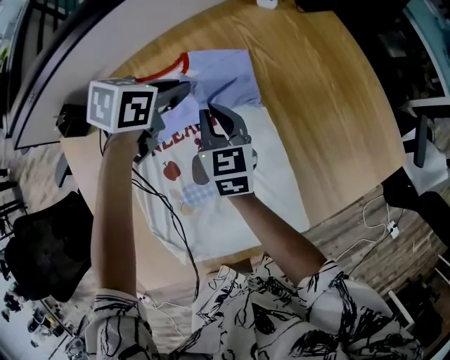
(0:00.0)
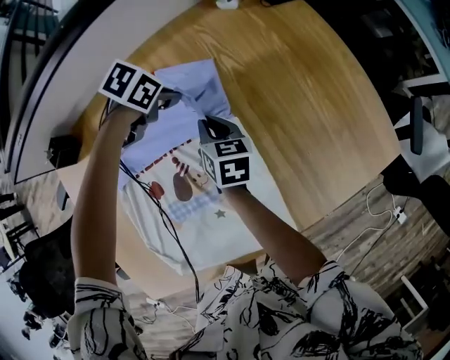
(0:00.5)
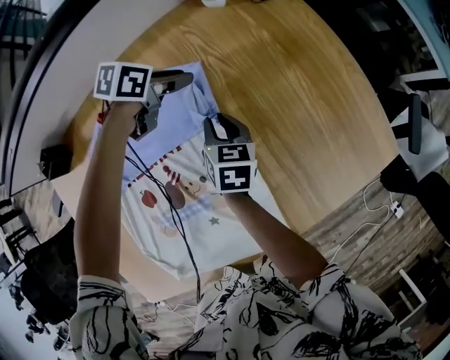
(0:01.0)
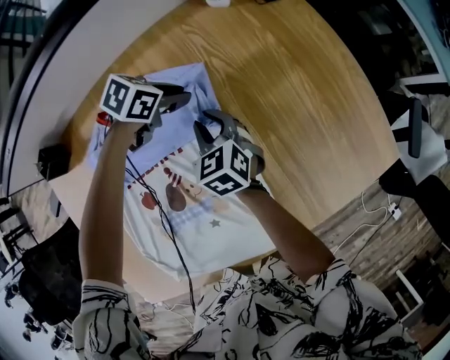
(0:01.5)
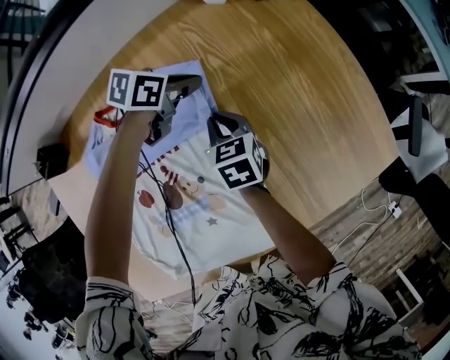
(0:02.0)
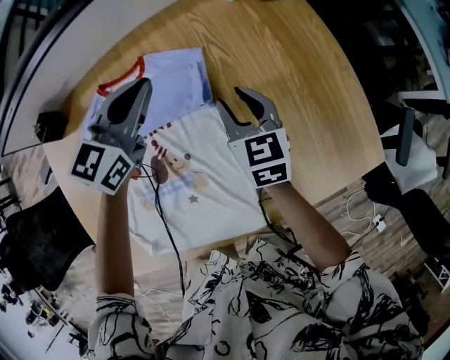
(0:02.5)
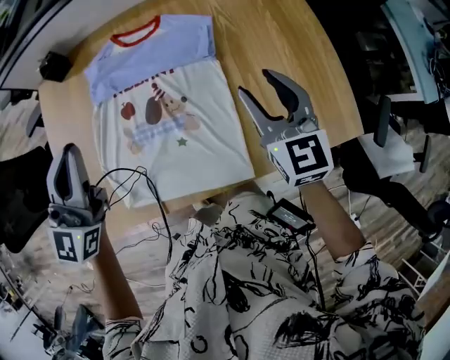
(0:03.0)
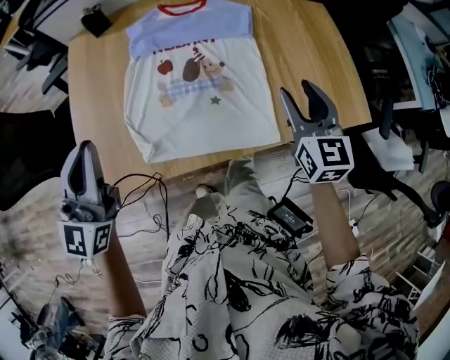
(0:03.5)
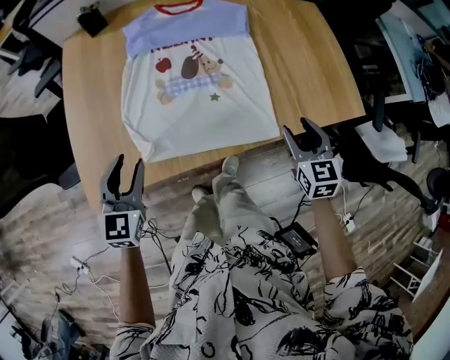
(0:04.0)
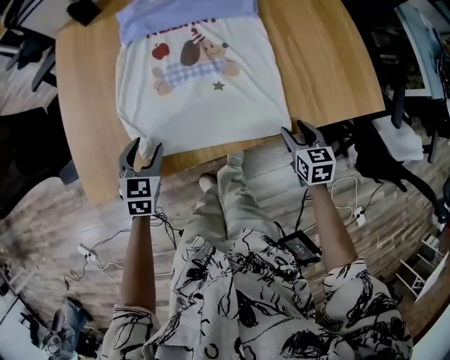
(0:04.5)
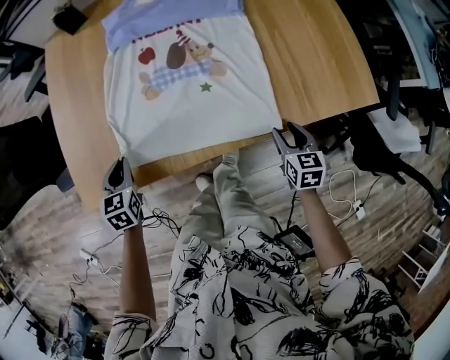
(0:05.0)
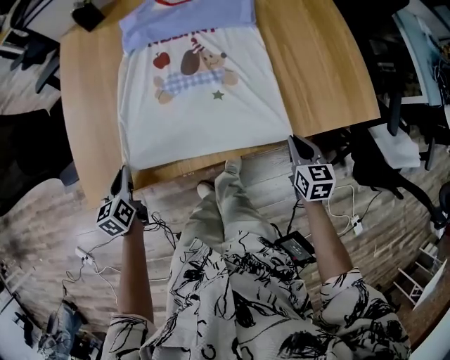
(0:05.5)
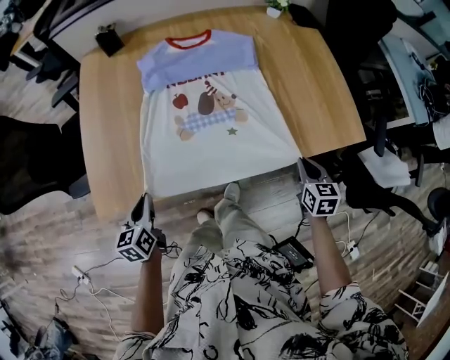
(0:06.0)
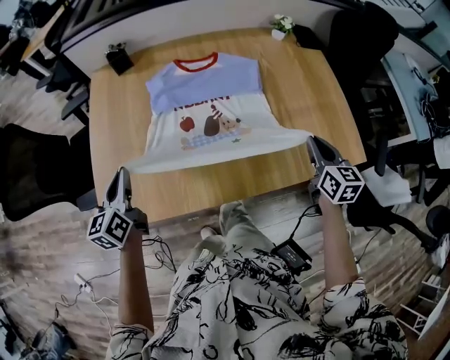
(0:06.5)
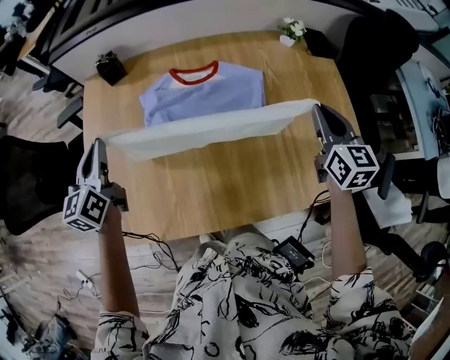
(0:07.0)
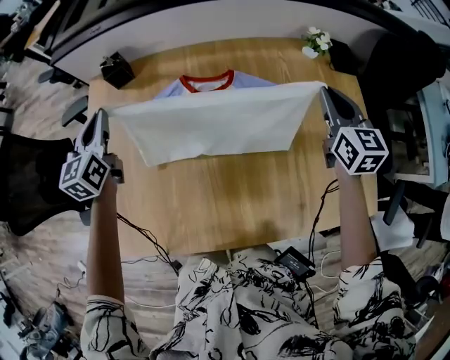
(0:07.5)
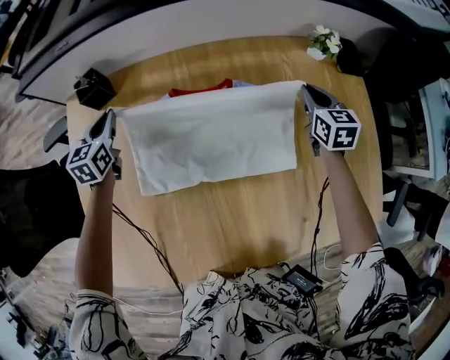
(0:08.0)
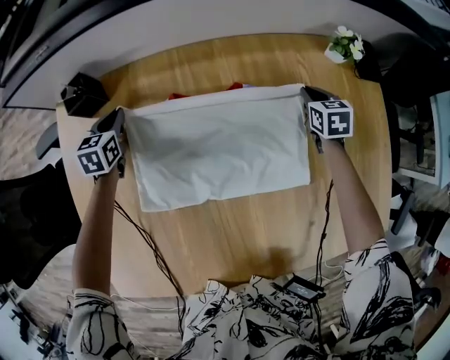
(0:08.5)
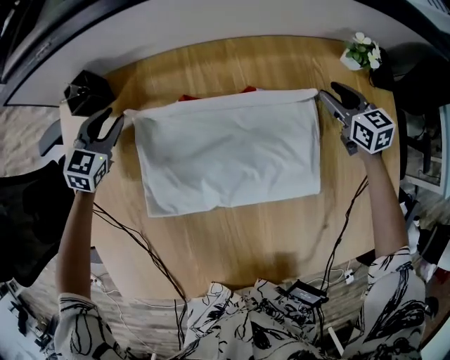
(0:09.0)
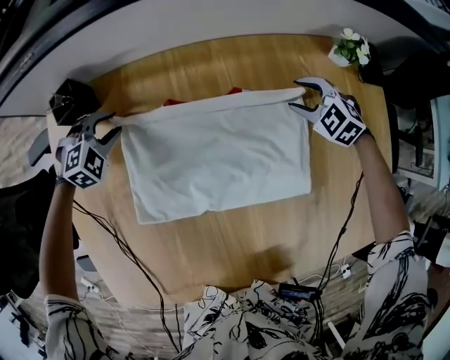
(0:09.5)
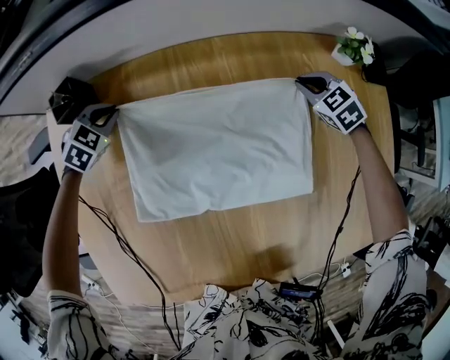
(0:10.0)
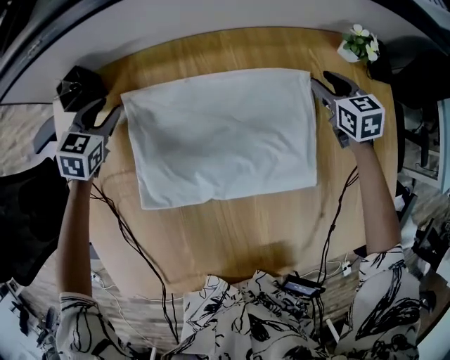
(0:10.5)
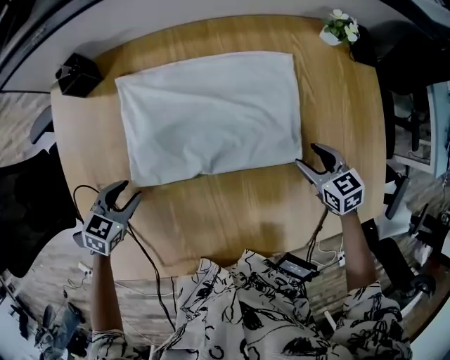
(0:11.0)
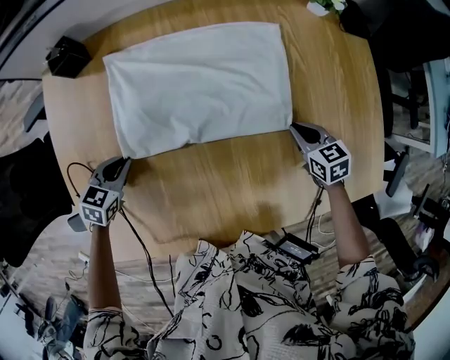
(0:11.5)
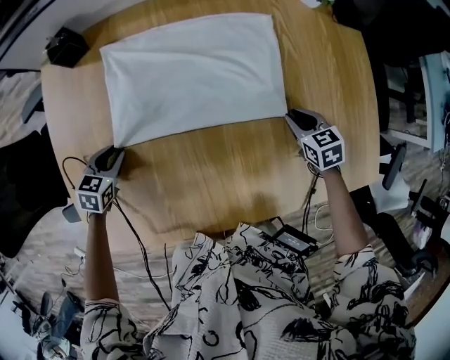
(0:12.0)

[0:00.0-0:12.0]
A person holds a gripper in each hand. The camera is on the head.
0:00.0 to 0:02.0: The right gripper travels downward, to the right and forward by some 15 cm, and swivels roughly 20 degrees. The left gripper shifts roughly 20 cm forward, downward and to the right.
0:02.0 to 0:04.0: The right gripper moves some 40 cm, turns by approximately 20 degrees, and opens its fingers. The left gripper ends up approximately 70 cm from where it was, rotates about 60 degrees, and opens its fingers.
0:04.0 to 0:06.0: The left gripper goes roughly 10 cm downward and backward, and changes its angle by about 40 degrees, while the right gripper heads to the right and downward, covering approximately 10 cm, and closes.
0:06.0 to 0:08.0: The pair of grippers is taken forward, about 60 cm.
0:08.0 to 0:10.0: The right gripper goes up and down, about 10 cm each way, reversing 2 times, swivels roughly 40 degrees, and opens, then closes again, while the left gripper moves downward and forward, about 15 cm, and points its fingers roughly 30 degrees further downward.
0:10.0 to 0:12.0: The two grippers go roughly 30 cm backward. The right gripper turns by about 30 degrees, and opens, then closes once more. Meanwhile the left gripper changes its angle by approximately 30 degrees.

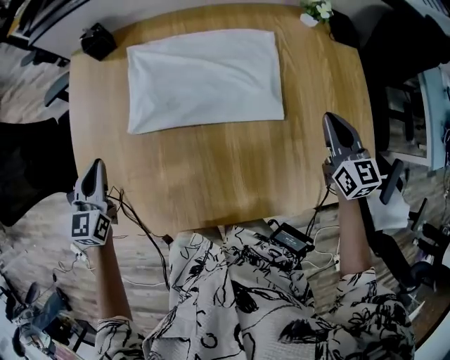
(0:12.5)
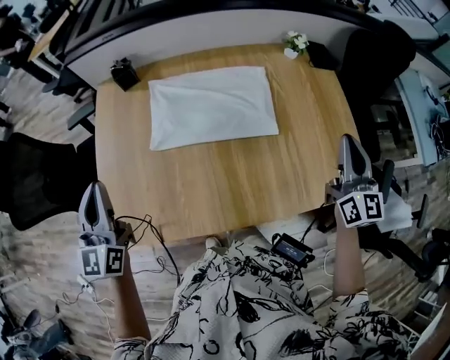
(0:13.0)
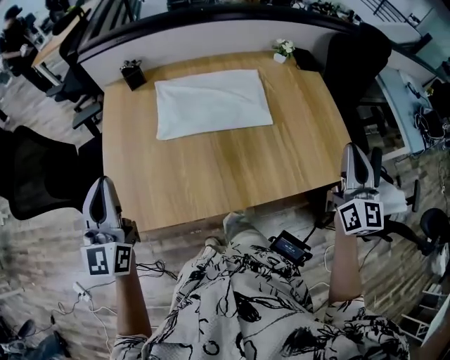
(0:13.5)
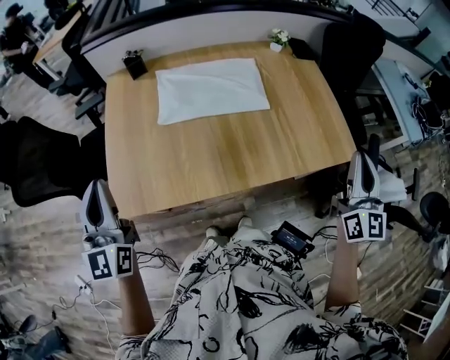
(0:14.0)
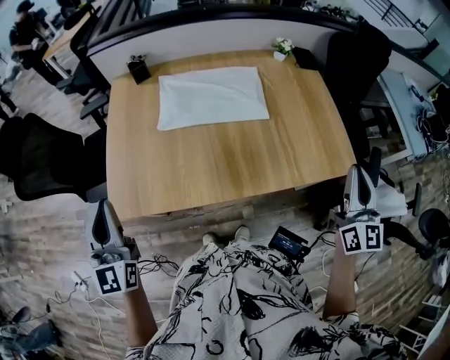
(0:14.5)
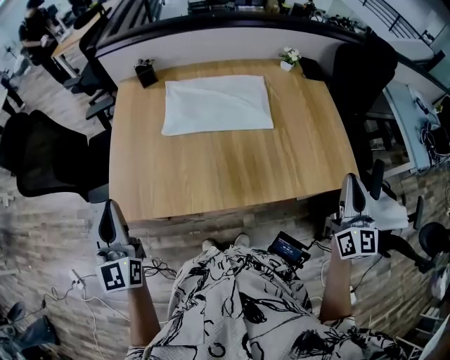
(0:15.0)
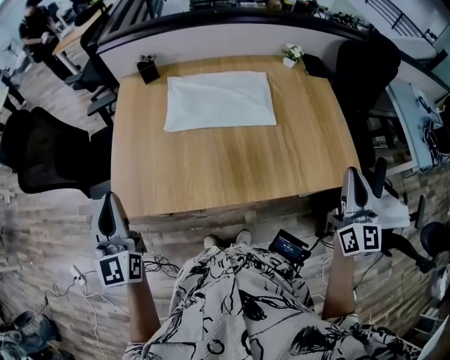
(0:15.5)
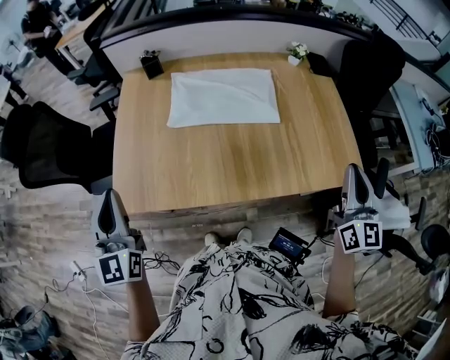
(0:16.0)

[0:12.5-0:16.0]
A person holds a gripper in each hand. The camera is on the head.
0:12.5 to 0:14.5: Both grippers travel together backward and upward, approximately 40 cm. The left gripper rotates some 30 degrees. The right gripper turns by some 30 degrees.
0:14.5 to 0:16.0: The grippers stay close to where they were, moving slightly.

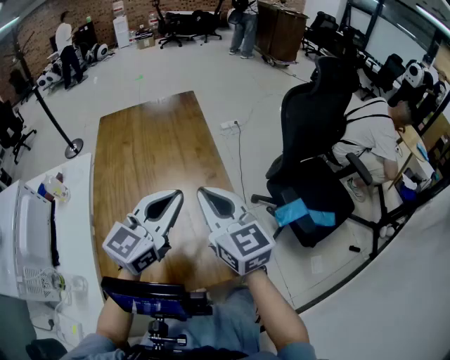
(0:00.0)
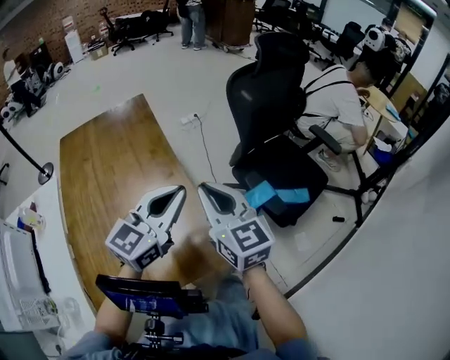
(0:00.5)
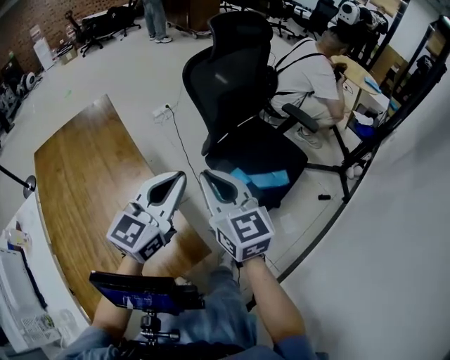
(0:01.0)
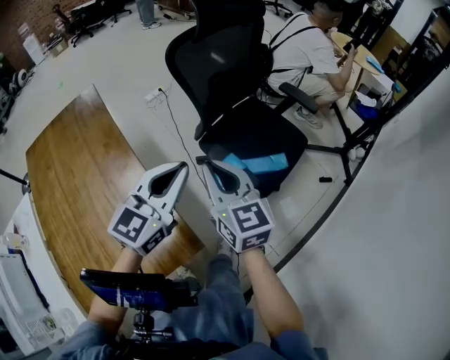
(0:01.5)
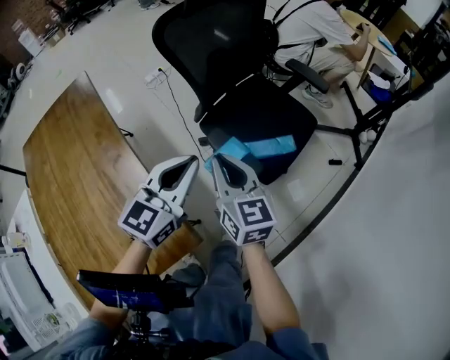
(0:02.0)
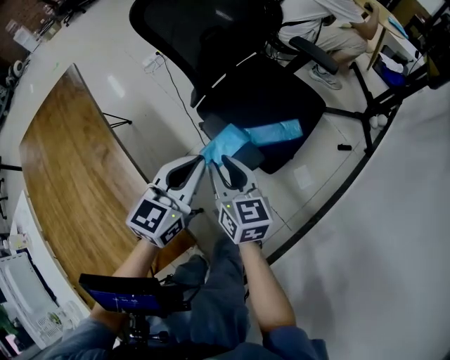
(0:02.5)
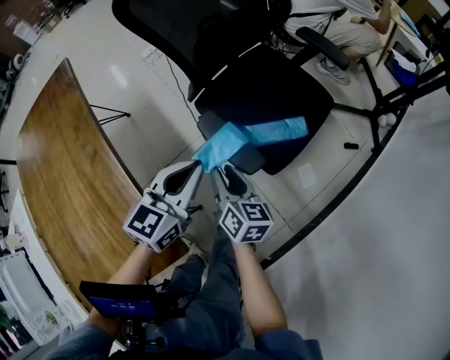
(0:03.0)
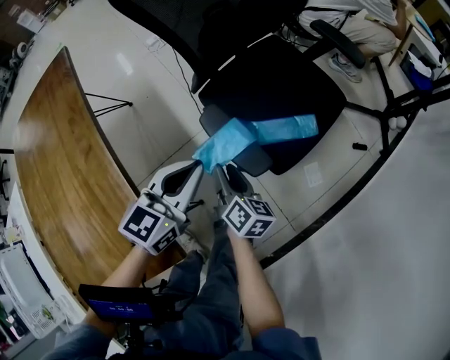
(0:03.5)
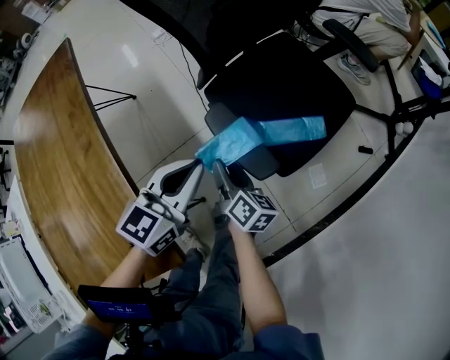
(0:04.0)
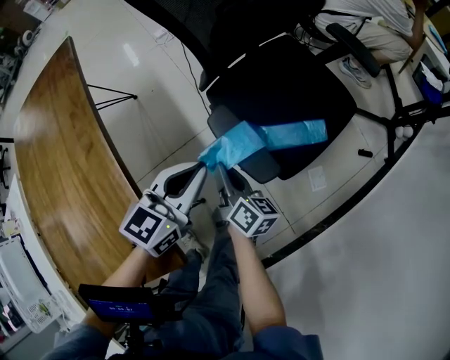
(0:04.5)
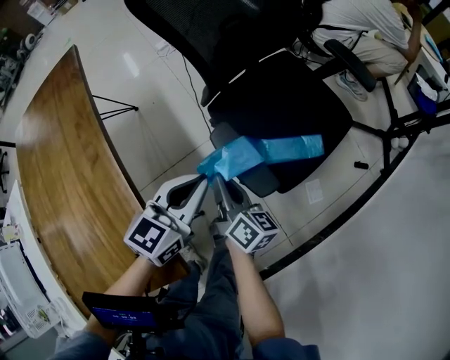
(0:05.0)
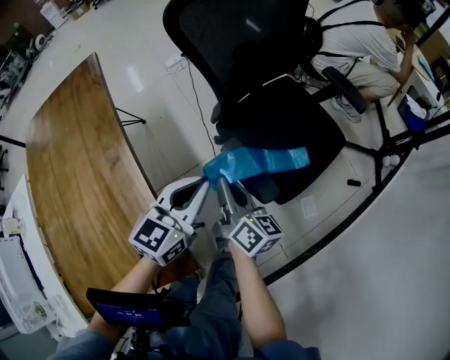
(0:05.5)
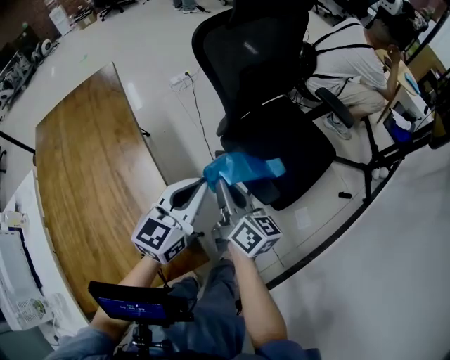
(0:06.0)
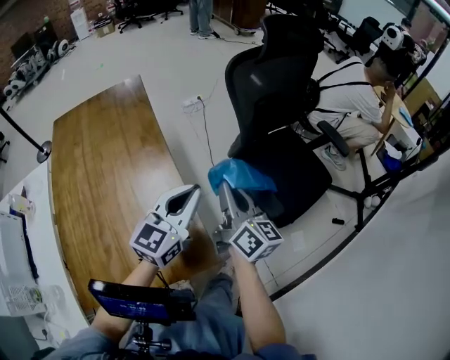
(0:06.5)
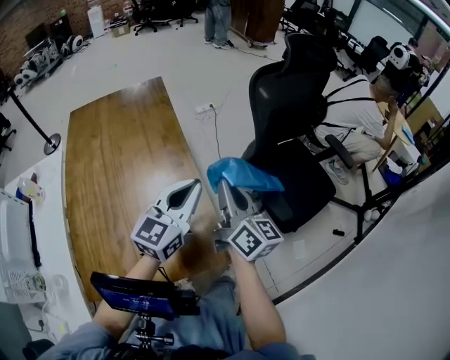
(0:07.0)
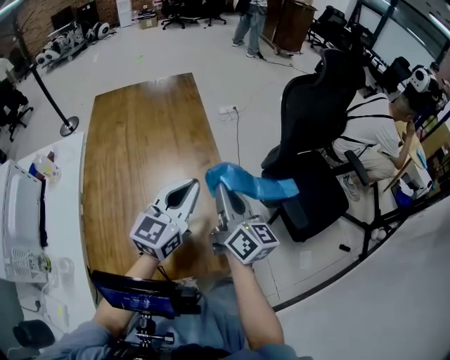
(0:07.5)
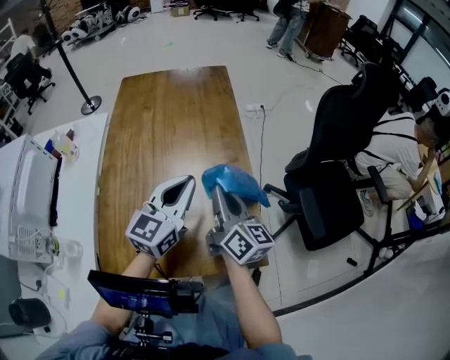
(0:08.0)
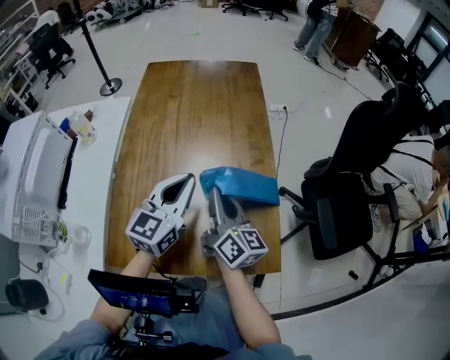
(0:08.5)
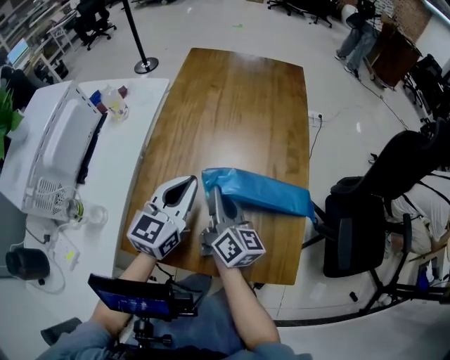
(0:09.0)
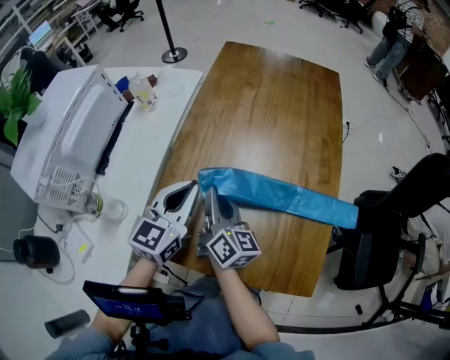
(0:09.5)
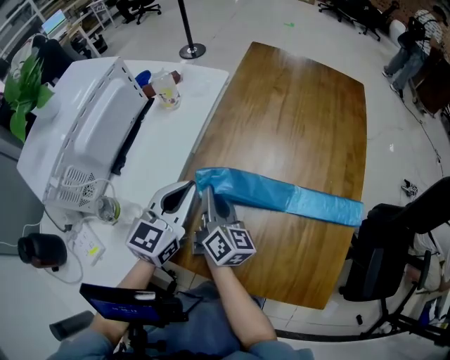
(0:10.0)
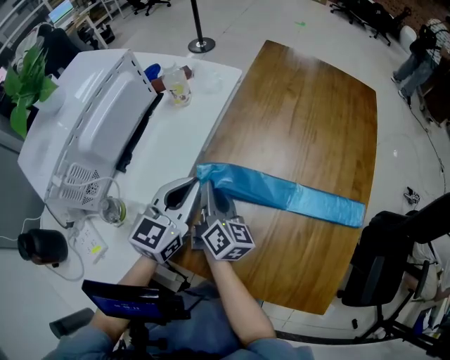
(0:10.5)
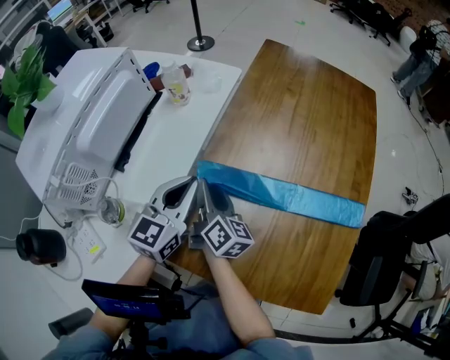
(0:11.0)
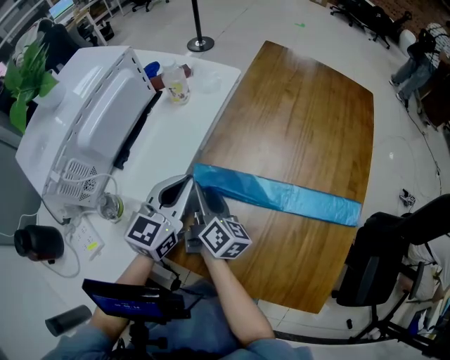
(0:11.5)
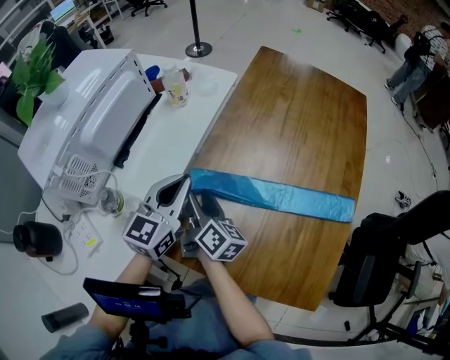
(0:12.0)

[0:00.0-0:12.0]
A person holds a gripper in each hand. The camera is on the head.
0:00.0 to 0:02.0: The right gripper changes place by some 35 cm, and changes its angle by roughly 30 degrees. The left gripper shifts by some 35 cm.
0:02.0 to 0:04.0: The left gripper shifts approximately 15 cm downward; the right gripper travels downward by roughly 25 cm, rotates around the line of its fingers by about 40 degrees, clockwise from behind, and opens its fingers.
0:04.0 to 0:06.0: The left gripper moves upward and to the left, about 15 cm; the right gripper goes roughly 20 cm upward, rotates roughly 20 degrees, and closes up.
0:06.0 to 0:08.0: Both grippers move to the left, some 30 cm. The left gripper turns by about 30 degrees, while the right gripper swivels approximately 20 degrees.
0:08.0 to 0:10.0: The right gripper ends up some 35 cm from where it was, and rotates roughly 20 degrees. Meanwhile the left gripper changes place by approximately 30 cm, and rotates some 30 degrees.
0:10.0 to 0:12.0: The right gripper shifts by approximately 5 cm, and opens up.
